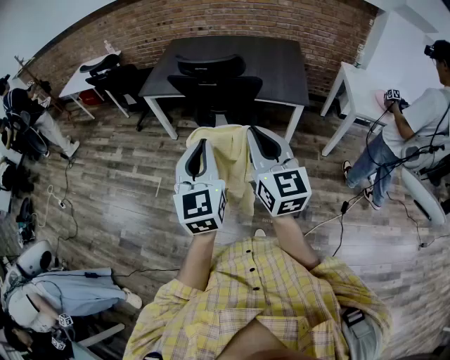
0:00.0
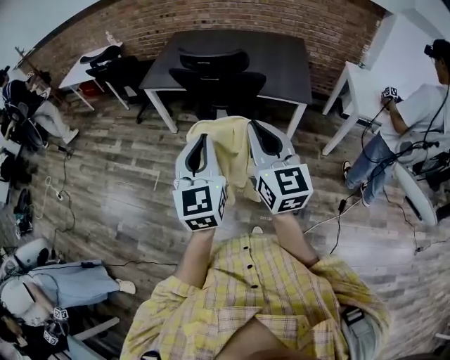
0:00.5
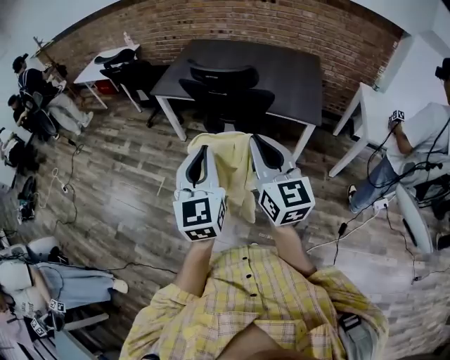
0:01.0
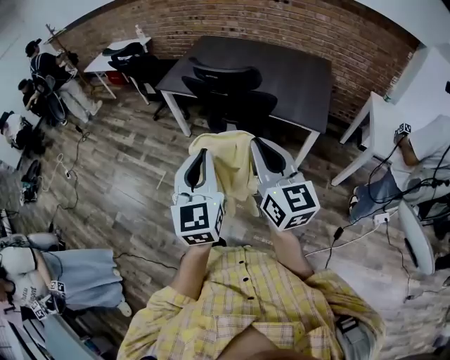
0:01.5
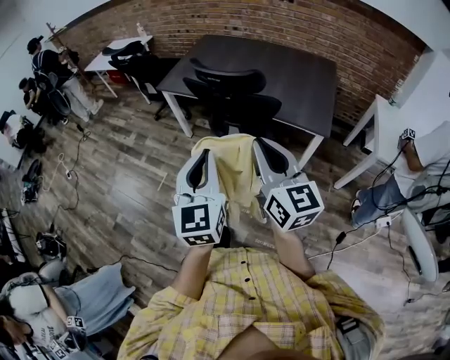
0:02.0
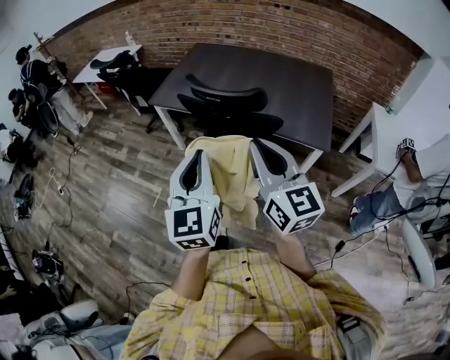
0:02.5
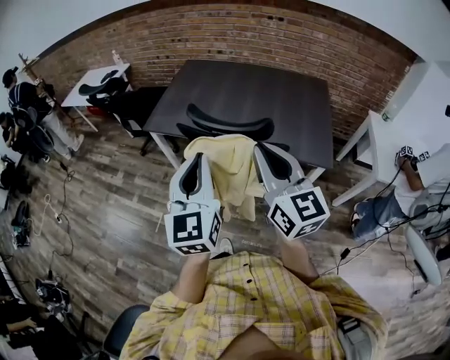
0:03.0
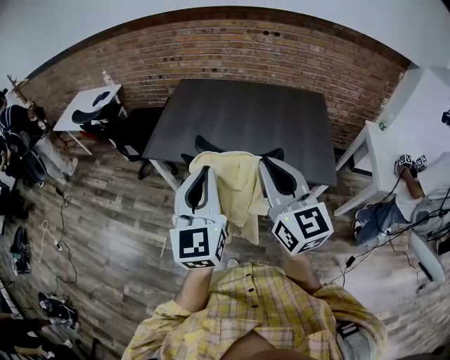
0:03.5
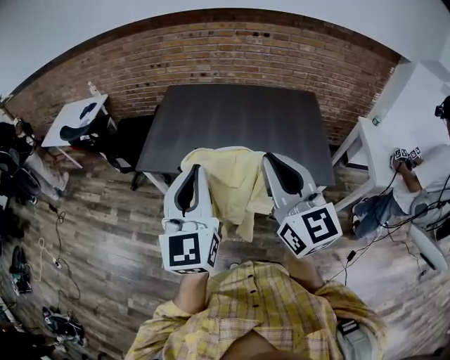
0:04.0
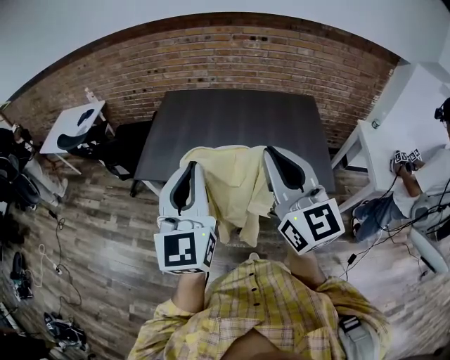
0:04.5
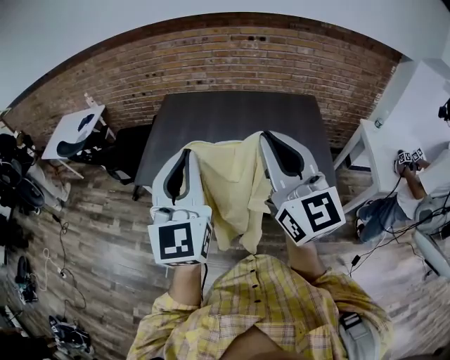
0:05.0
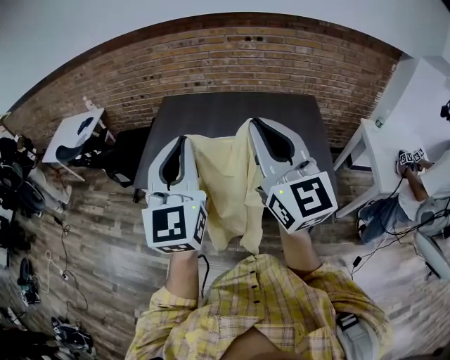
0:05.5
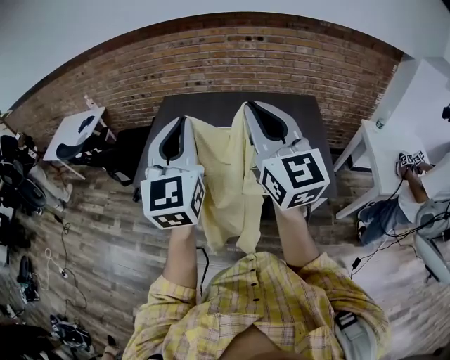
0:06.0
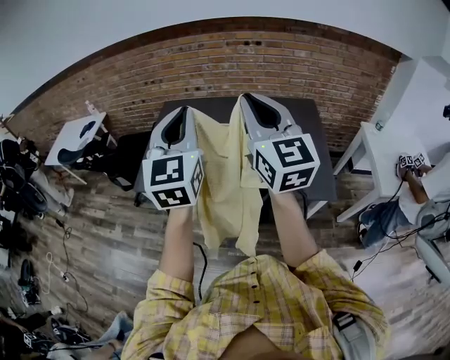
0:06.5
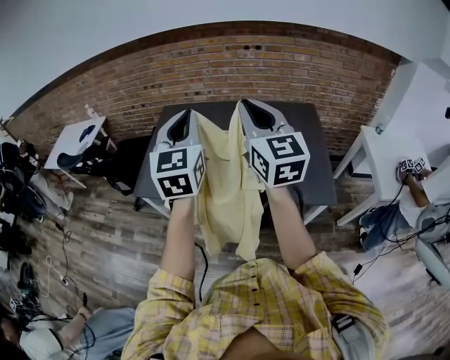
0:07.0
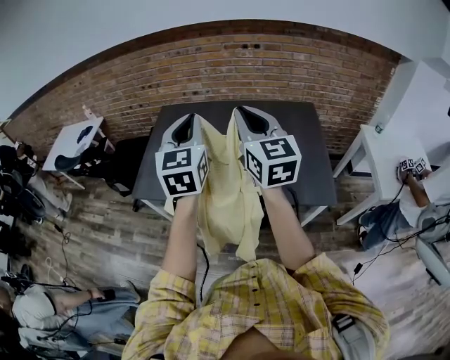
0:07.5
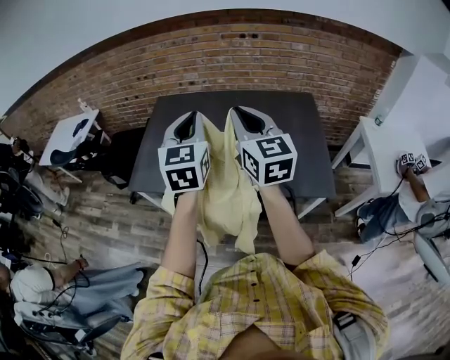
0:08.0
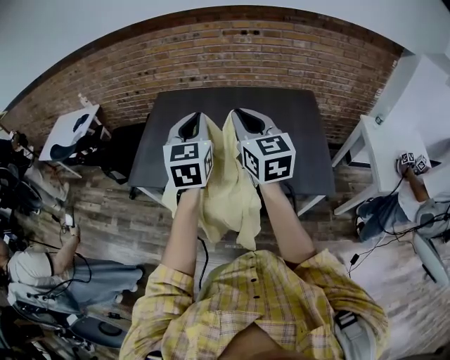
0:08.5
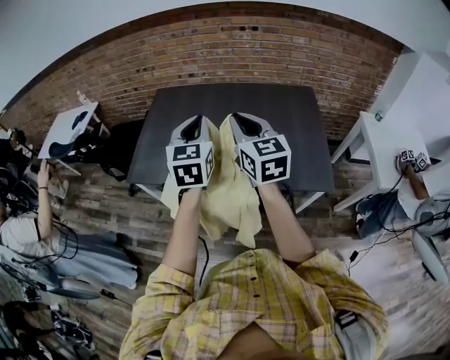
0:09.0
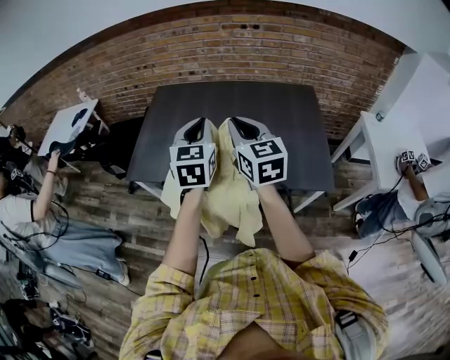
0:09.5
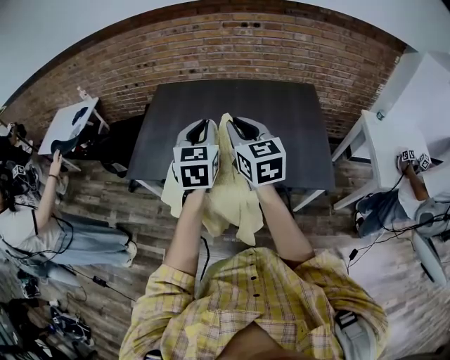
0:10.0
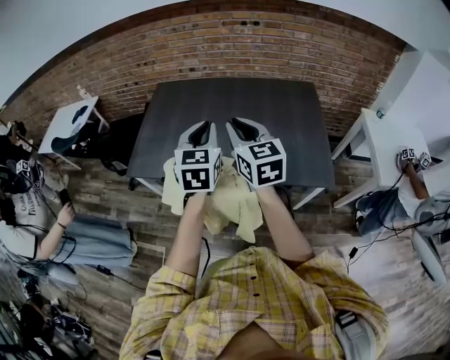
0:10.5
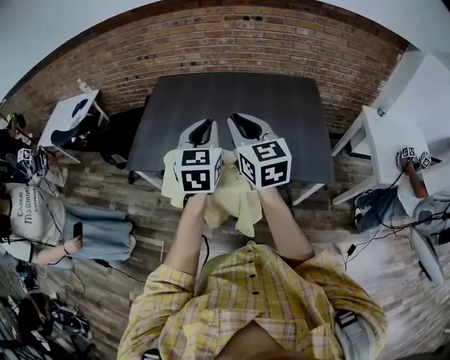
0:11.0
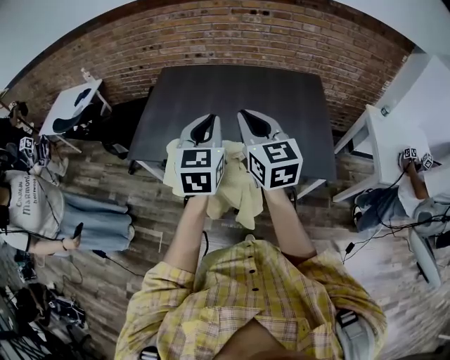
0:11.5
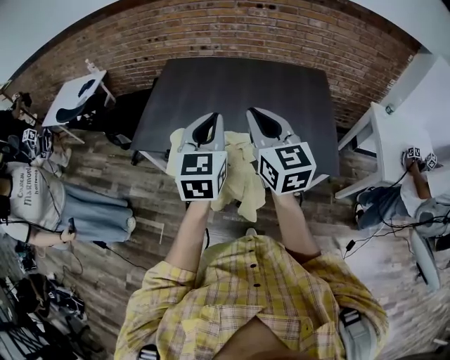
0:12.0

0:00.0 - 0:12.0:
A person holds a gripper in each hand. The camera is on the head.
0:00.0 - 0:02.0: The two grippers go approximately 10 cm forward and to the right.
0:02.0 - 0:04.0: The grippers both shift forward by approximately 35 cm.
0:04.0 - 0:06.0: The right gripper moves forward, approximately 15 cm. Meanwhile the left gripper goes about 15 cm forward, to the right and upward.
0:06.0 - 0:08.0: Both grippers move forward and downward, roughly 15 cm.
0:08.0 - 0:10.0: The two grippers go approximately 10 cm downward.
0:10.0 - 0:12.0: Both grippers move backward, about 10 cm.

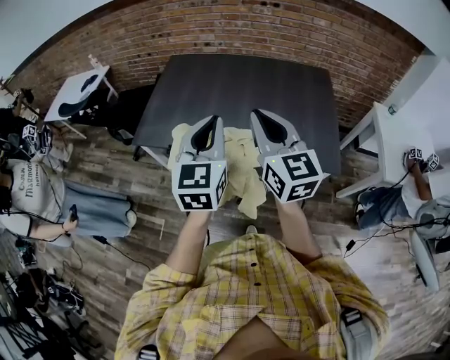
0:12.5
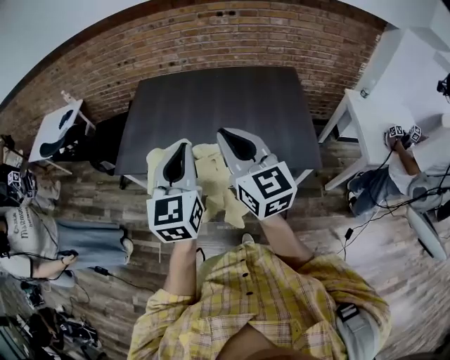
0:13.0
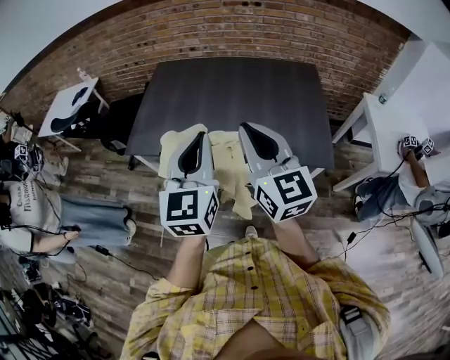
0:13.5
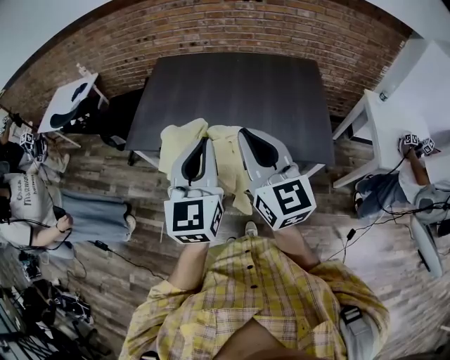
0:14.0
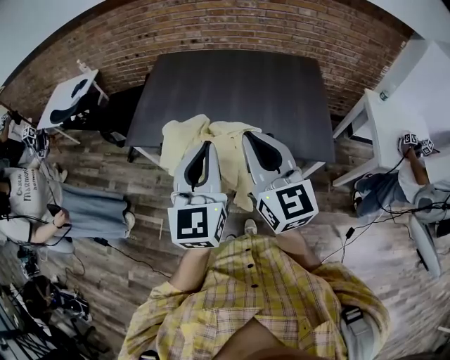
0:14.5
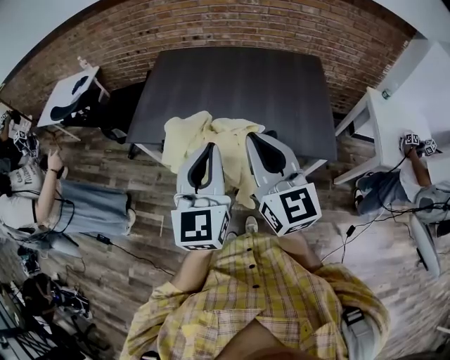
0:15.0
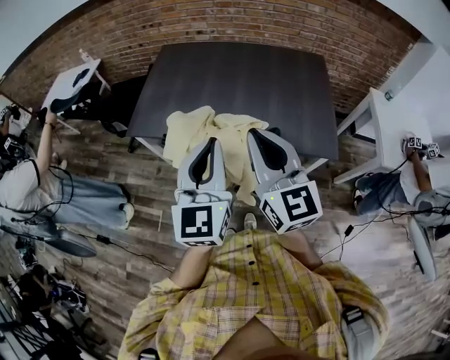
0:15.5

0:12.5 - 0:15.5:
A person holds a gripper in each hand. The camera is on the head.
0:12.5 - 0:14.0: Both grippers move backward, about 5 cm.
0:14.0 - 0:15.5: The grippers move only a little.

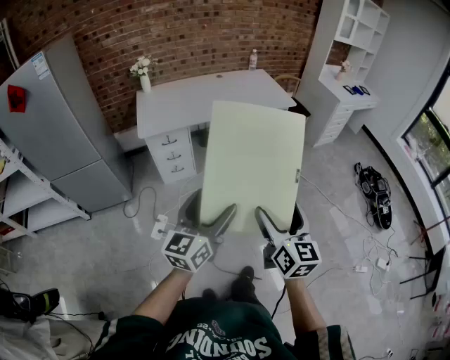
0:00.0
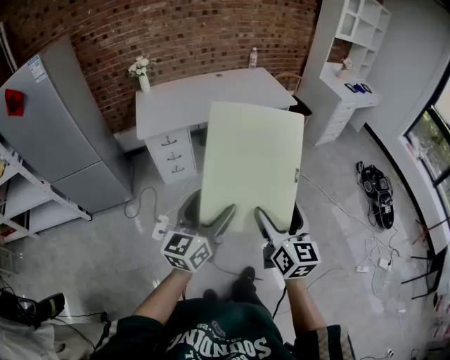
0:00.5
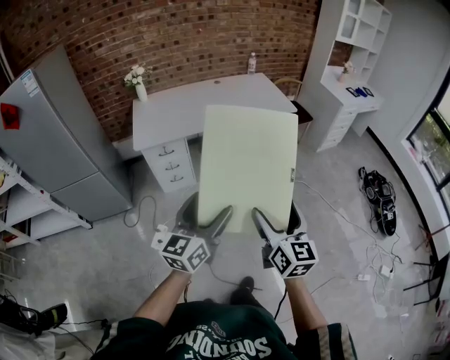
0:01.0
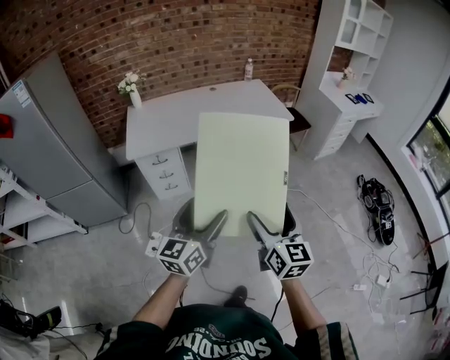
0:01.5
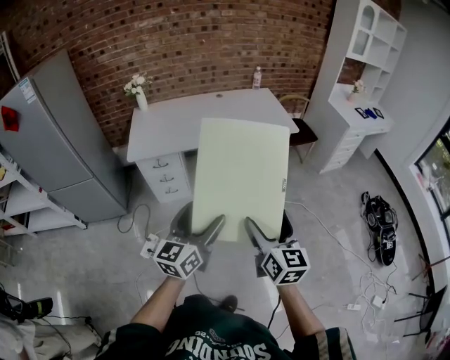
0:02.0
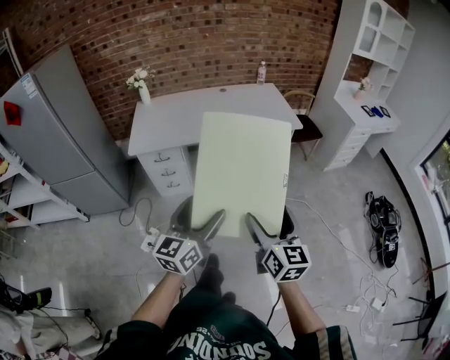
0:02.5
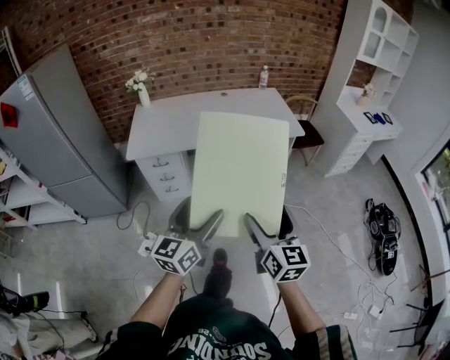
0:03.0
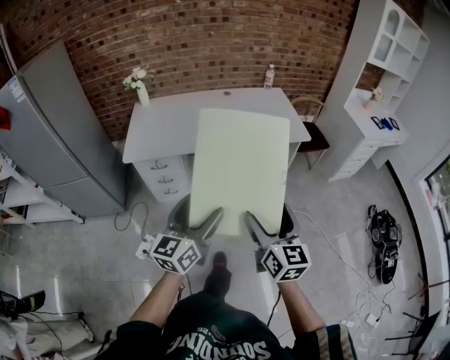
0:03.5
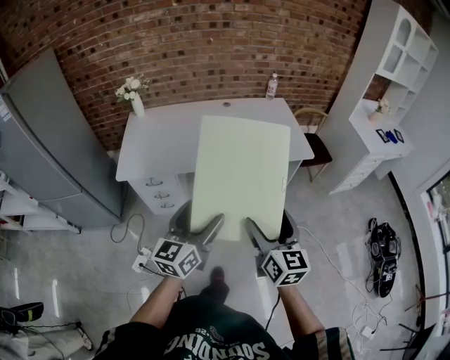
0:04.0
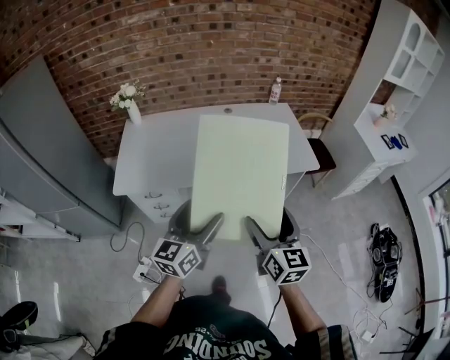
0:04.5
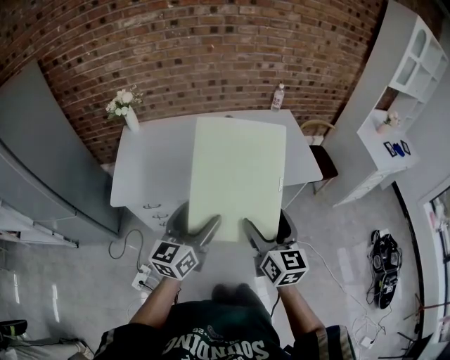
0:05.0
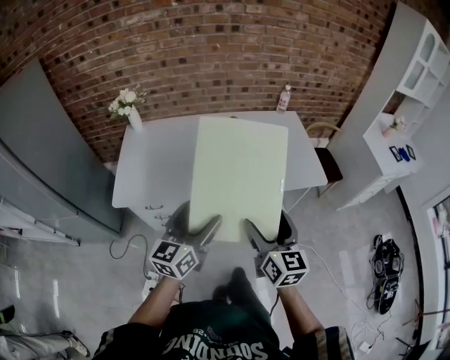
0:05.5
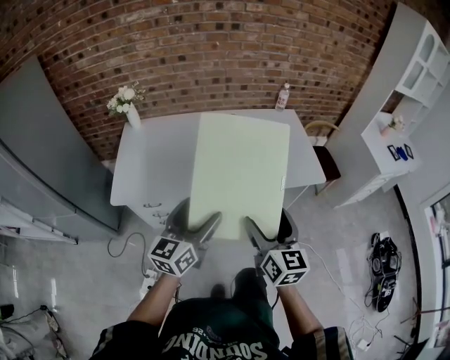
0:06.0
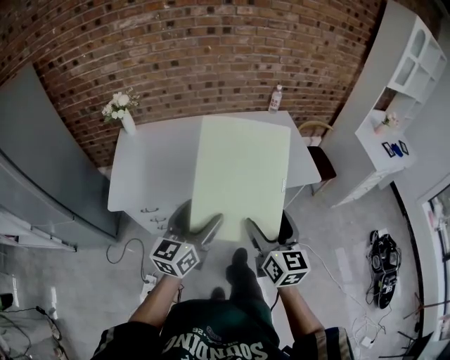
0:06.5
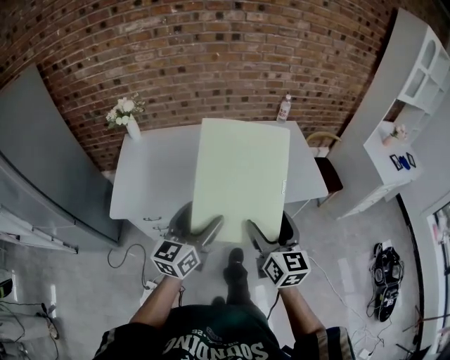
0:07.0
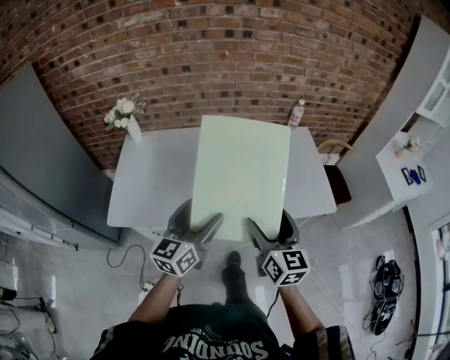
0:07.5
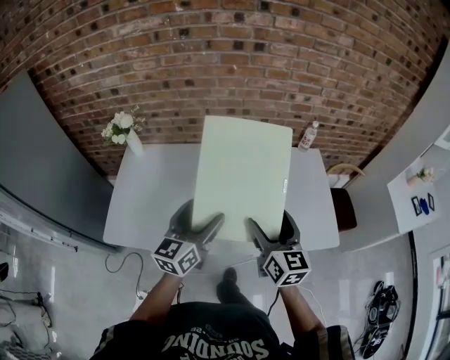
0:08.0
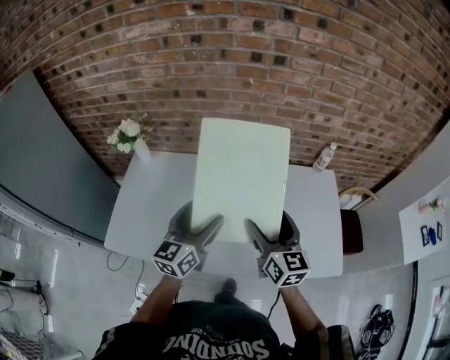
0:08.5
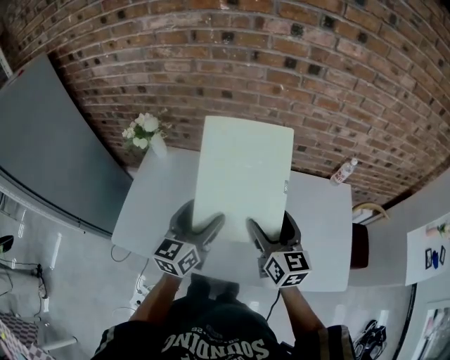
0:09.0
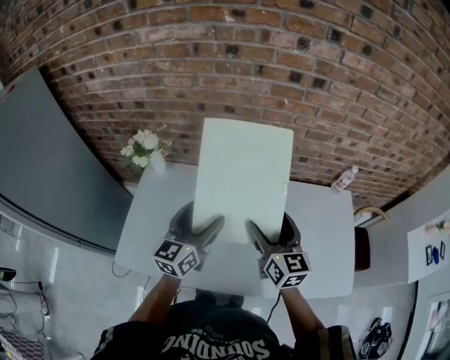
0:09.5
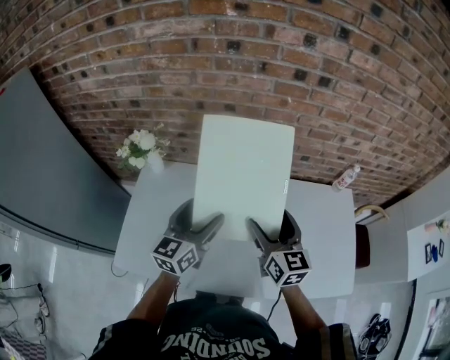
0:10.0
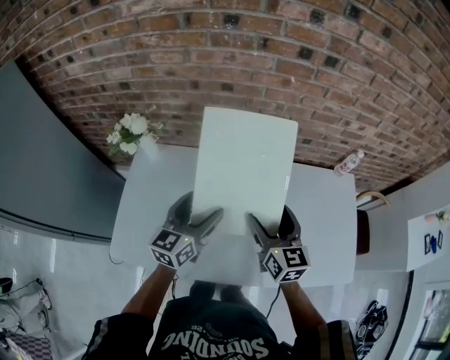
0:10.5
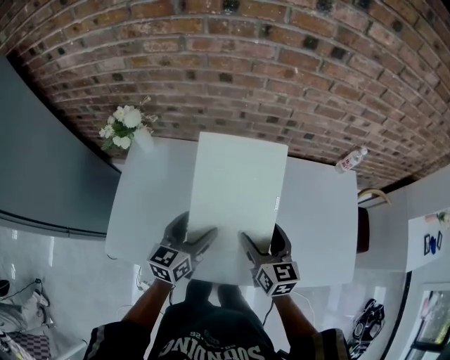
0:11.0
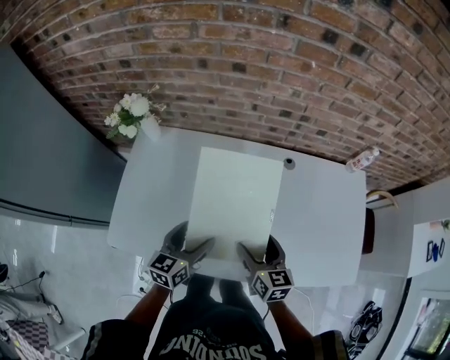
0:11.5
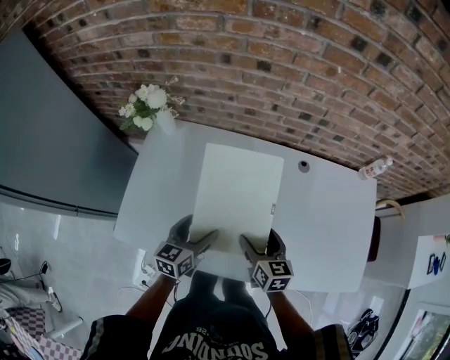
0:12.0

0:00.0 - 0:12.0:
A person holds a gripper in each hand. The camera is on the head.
0:00.0 - 0:02.0: The two grippers go approximately 20 cm forward and to the right.
0:02.0 - 0:04.0: Both grippers move forward, some 25 cm.
0:04.0 - 0:06.0: The two grippers go some 20 cm forward.
0:06.0 - 0:08.0: Both grippers travel together forward, about 30 cm.
0:08.0 - 0:10.0: The grippers both shift forward and to the left by about 25 cm.
0:10.0 - 0:12.0: The two grippers go about 20 cm downward. The left gripper turns by roughly 20 degrees. The right gripper changes its angle by some 20 degrees.
